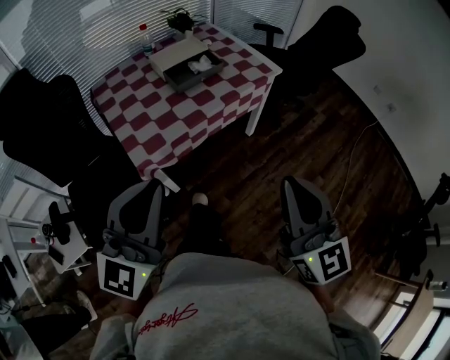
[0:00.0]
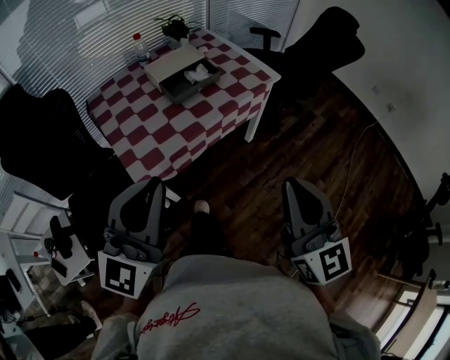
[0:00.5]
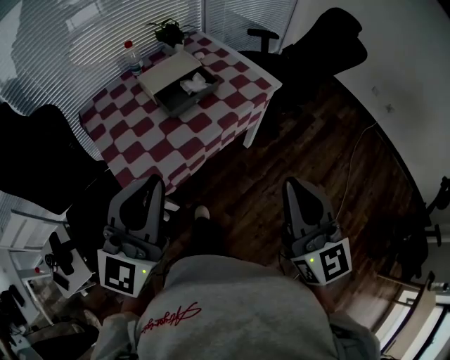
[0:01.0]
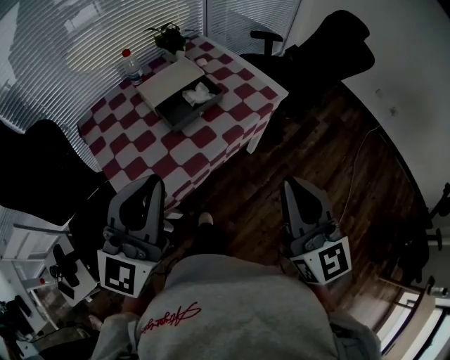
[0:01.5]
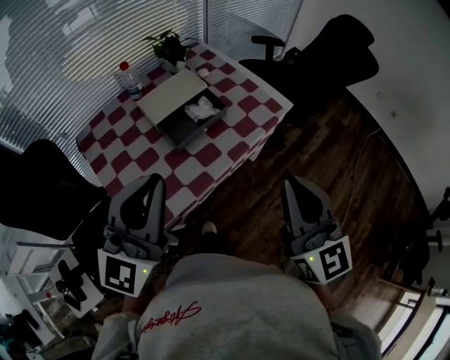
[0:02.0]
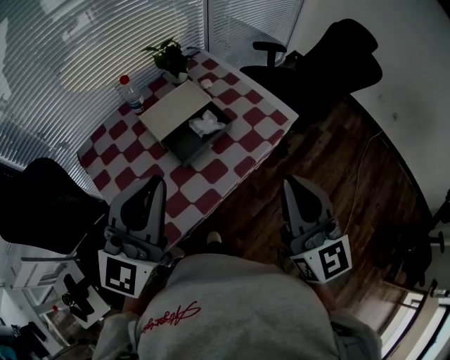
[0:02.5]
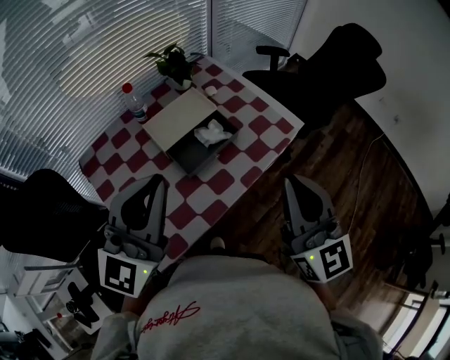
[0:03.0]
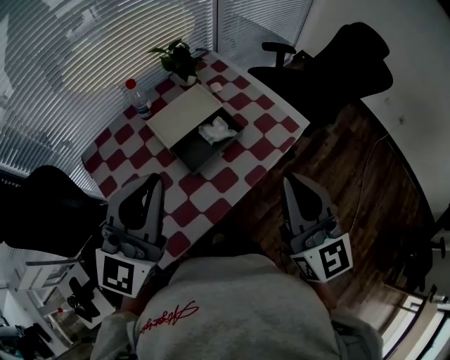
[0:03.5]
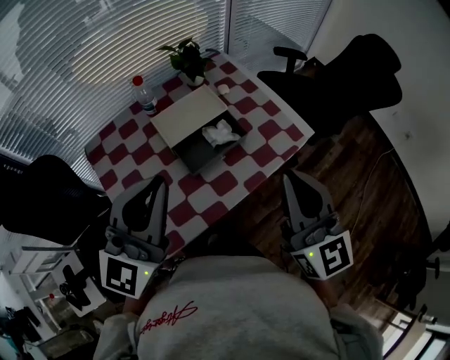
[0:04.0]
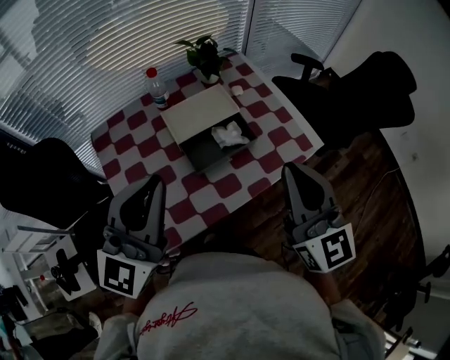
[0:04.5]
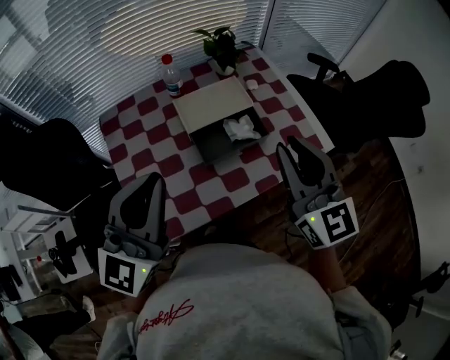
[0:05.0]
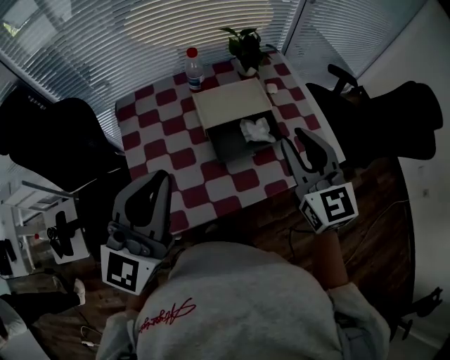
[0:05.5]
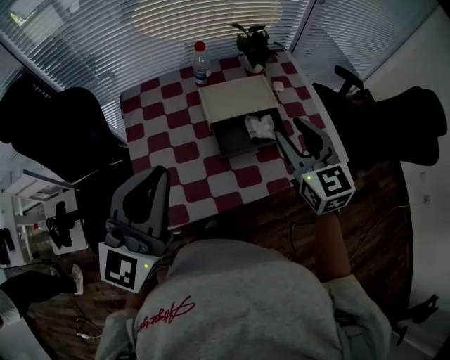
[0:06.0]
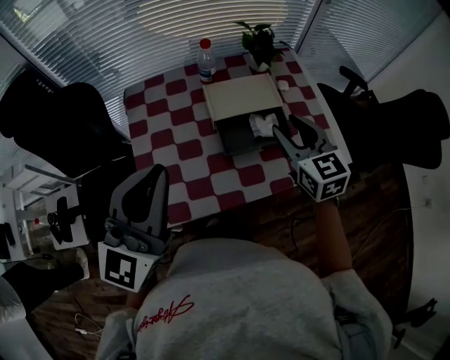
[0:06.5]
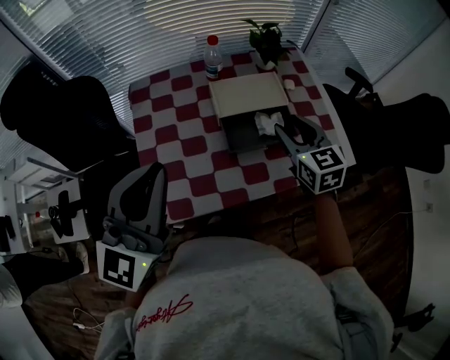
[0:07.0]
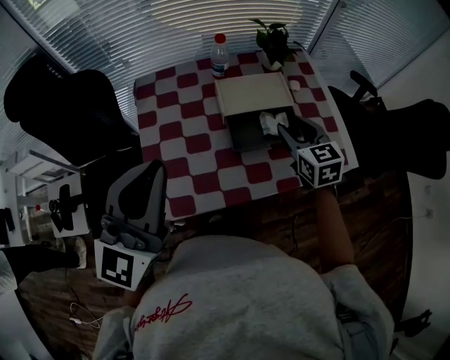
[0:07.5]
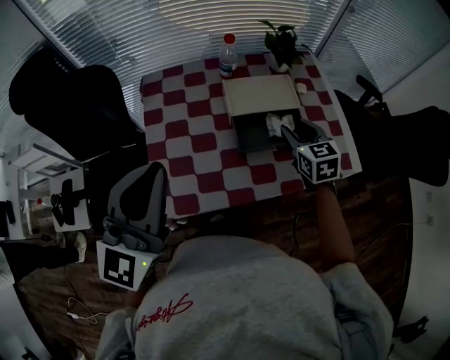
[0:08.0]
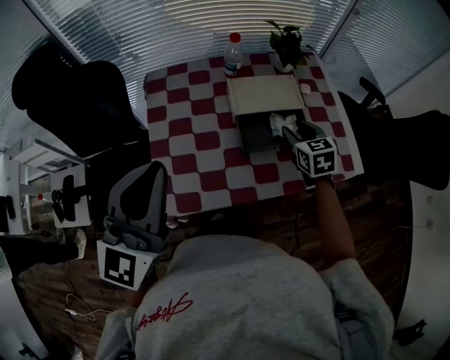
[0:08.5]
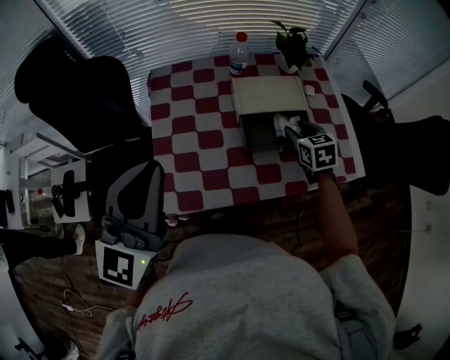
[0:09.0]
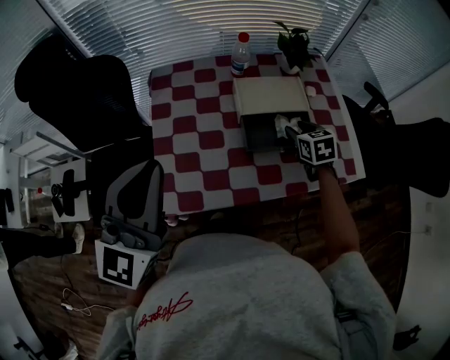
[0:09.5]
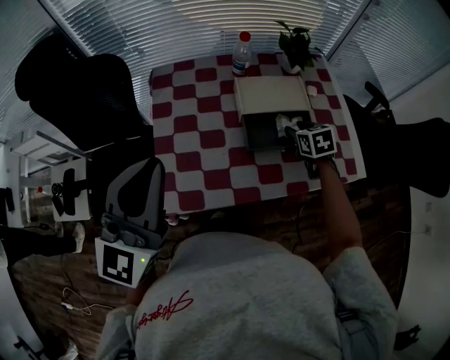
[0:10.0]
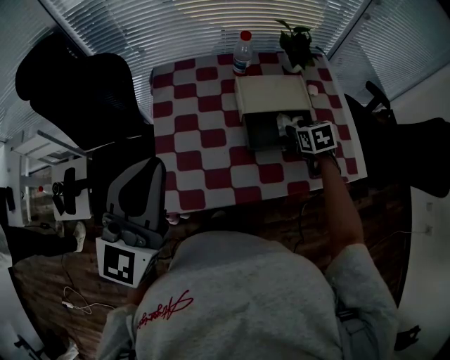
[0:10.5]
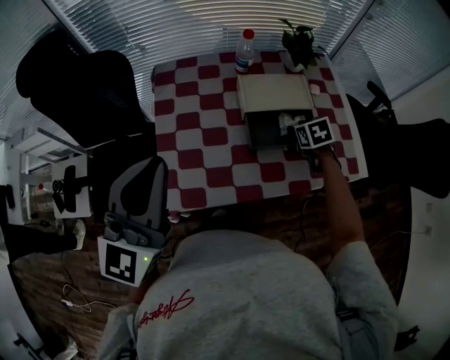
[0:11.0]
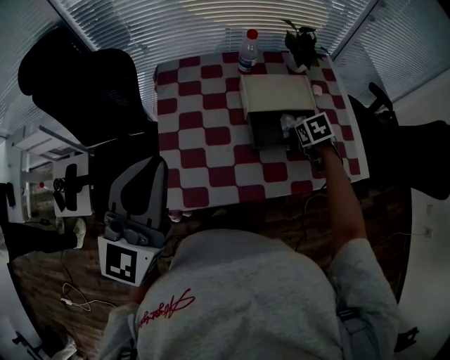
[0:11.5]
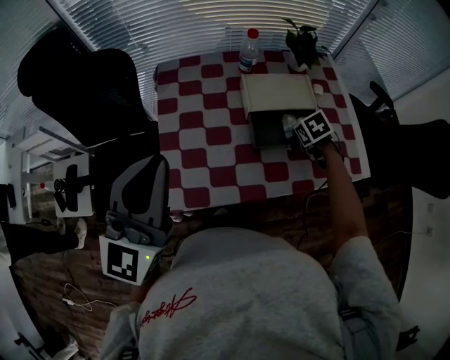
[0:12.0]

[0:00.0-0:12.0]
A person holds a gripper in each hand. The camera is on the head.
0:00.0 to 0:02.0: The grippers both shift forward by some 25 cm.
0:02.0 to 0:04.0: The grippers both shift forward by approximately 10 cm.
0:04.0 to 0:06.0: The left gripper is displaced to the left by roughly 5 cm, and changes its angle by some 20 degrees. Meanwhile the right gripper travels forward and downward by about 15 cm, turns by approximately 30 degrees, and opens.
0:06.0 to 0:08.0: The right gripper heads downward and forward, covering about 15 cm.
0:08.0 to 0:10.0: The right gripper moves downward, approximately 10 cm.
0:10.0 to 0:12.0: The right gripper swivels roughly 20 degrees, and closes its fingers.

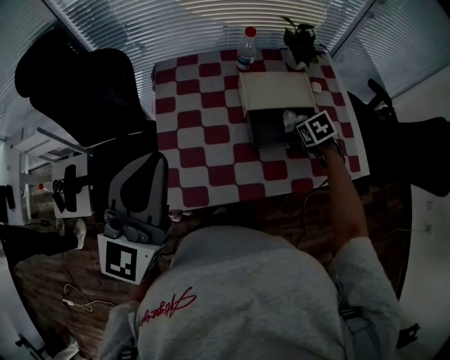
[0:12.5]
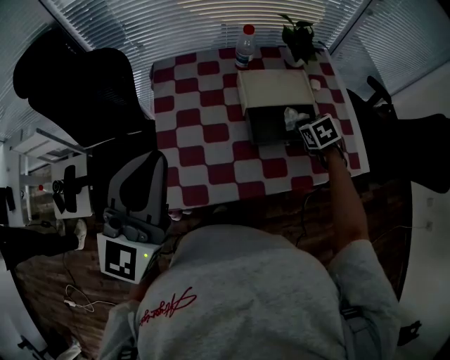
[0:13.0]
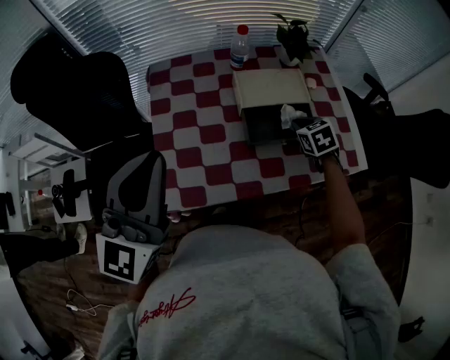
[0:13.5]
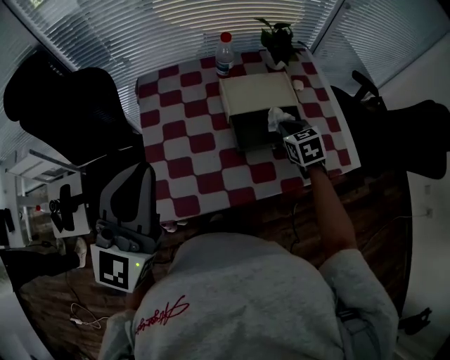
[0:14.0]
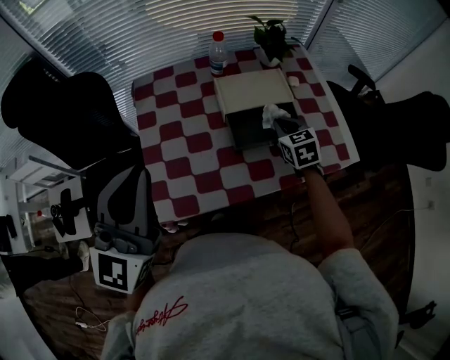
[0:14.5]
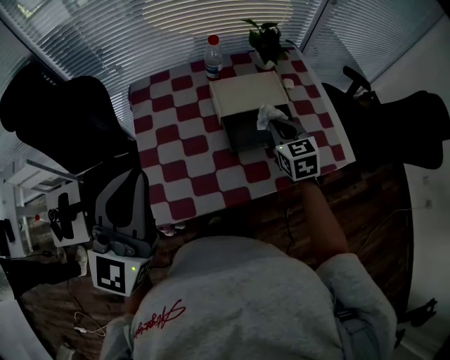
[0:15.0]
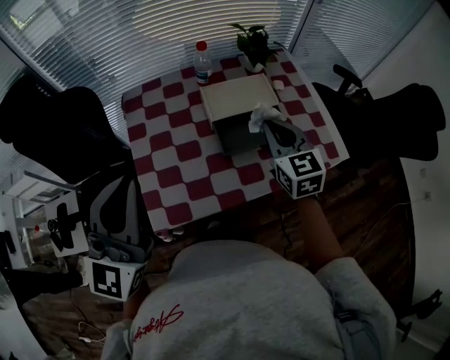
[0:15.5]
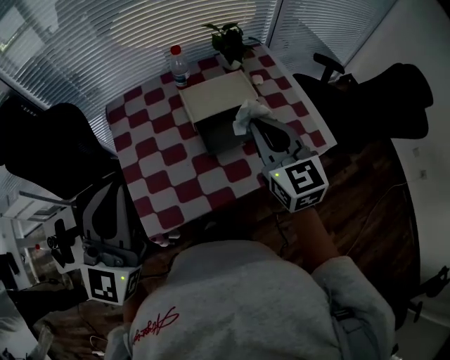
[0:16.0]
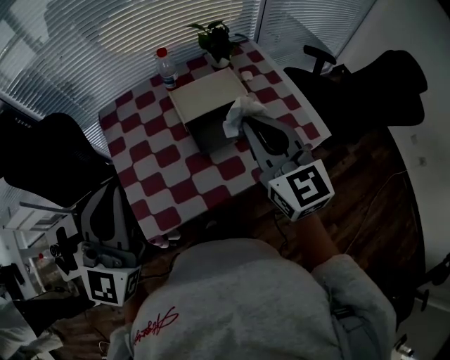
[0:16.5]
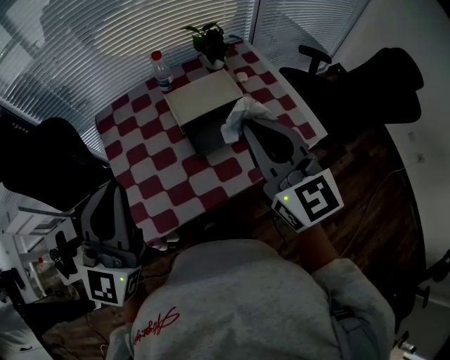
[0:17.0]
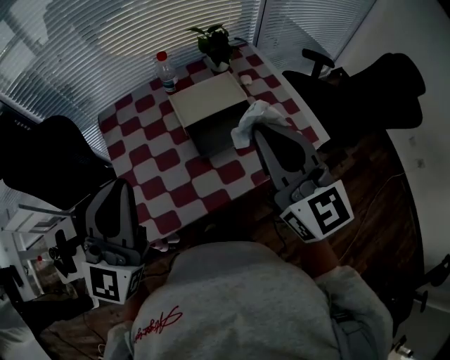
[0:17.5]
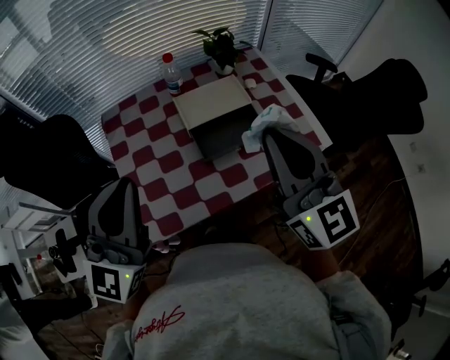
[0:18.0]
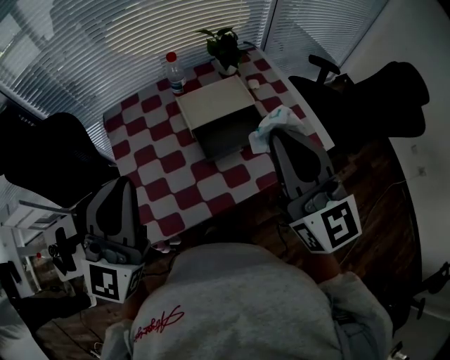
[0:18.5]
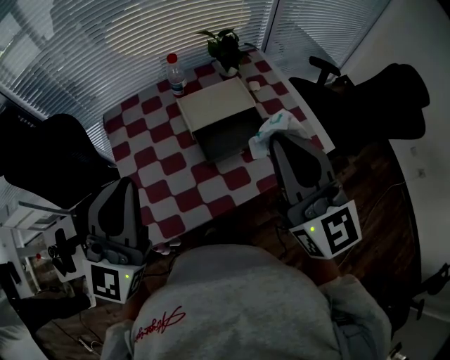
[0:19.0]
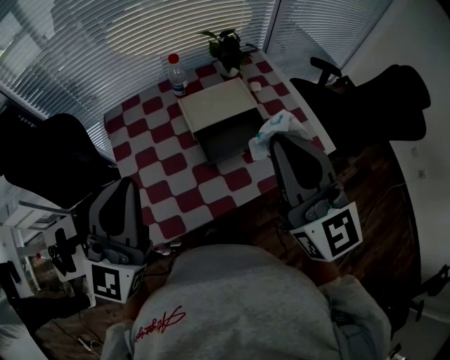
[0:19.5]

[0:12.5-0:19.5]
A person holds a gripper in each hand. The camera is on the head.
0:12.5 to 0:14.5: The right gripper travels upward by approximately 5 cm, and swivels some 30 degrees.
0:14.5 to 0:16.0: The right gripper shifts roughly 20 cm upward and backward, and rotates roughly 30 degrees.
0:16.0 to 0:17.5: The right gripper moves upward and backward, approximately 10 cm.
0:17.5 to 0:19.5: The grippers move only a little.

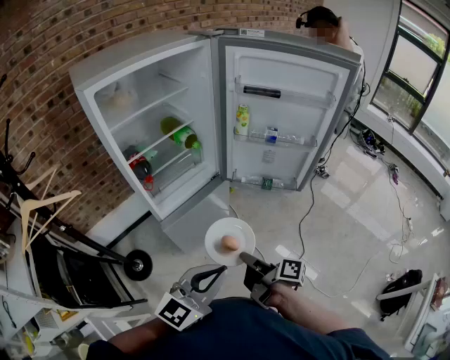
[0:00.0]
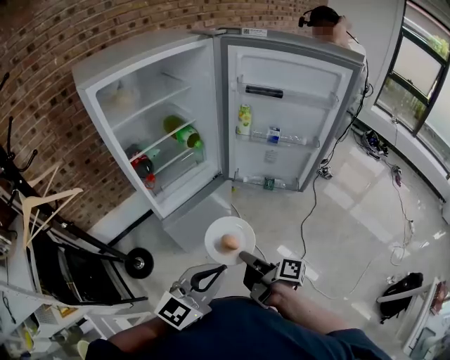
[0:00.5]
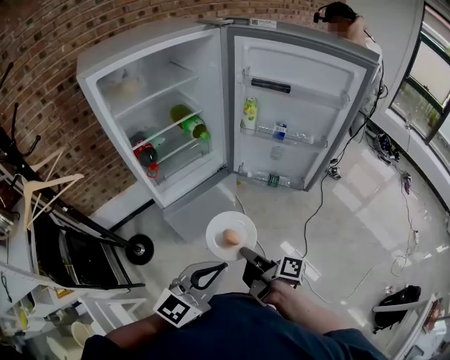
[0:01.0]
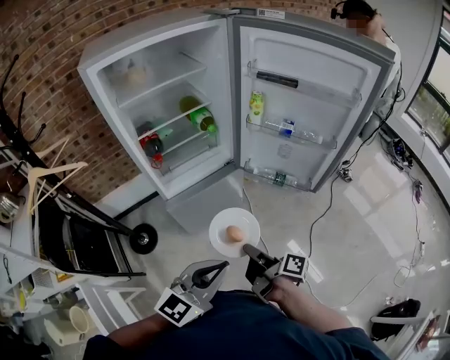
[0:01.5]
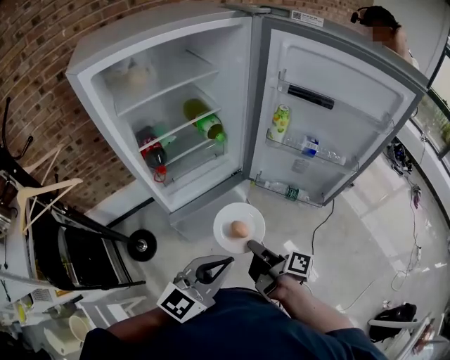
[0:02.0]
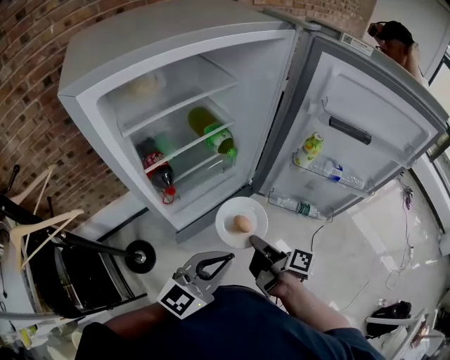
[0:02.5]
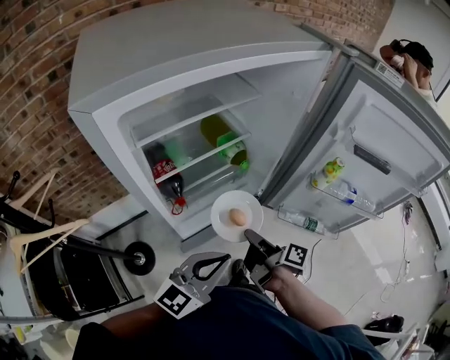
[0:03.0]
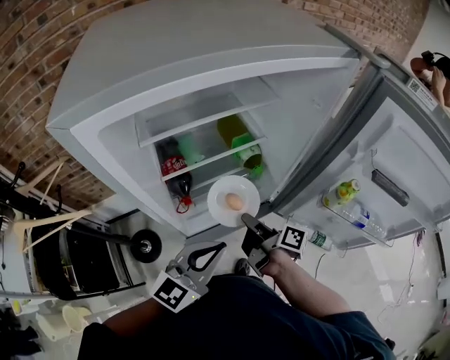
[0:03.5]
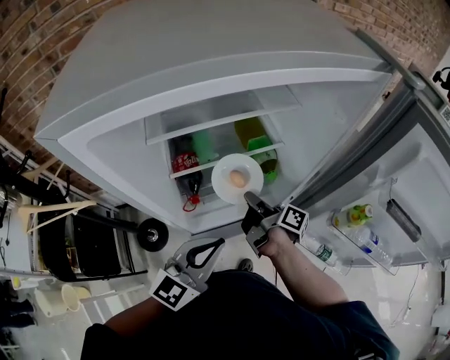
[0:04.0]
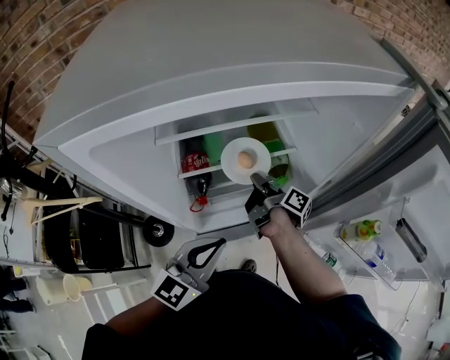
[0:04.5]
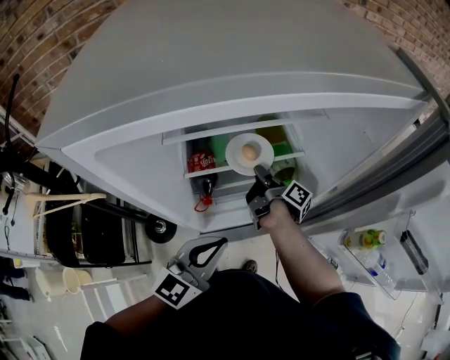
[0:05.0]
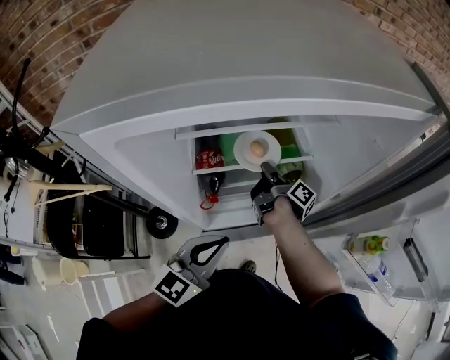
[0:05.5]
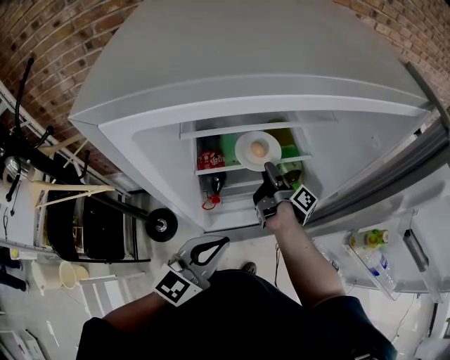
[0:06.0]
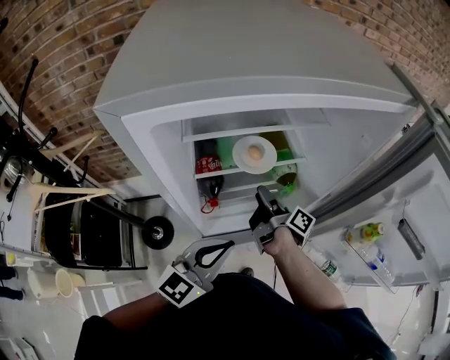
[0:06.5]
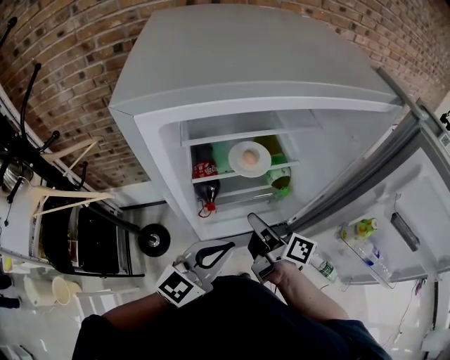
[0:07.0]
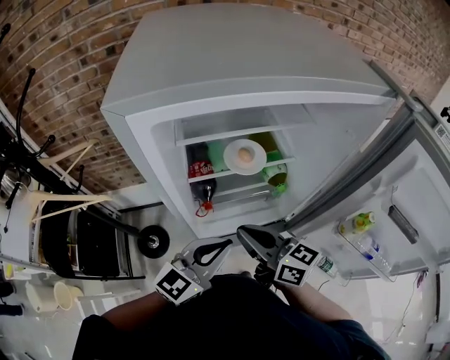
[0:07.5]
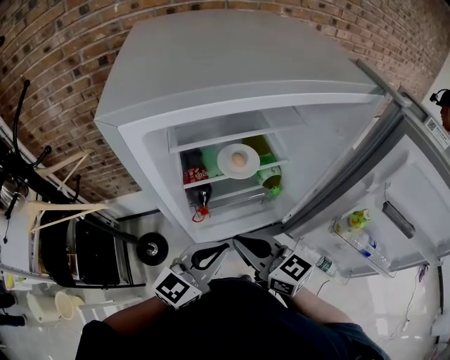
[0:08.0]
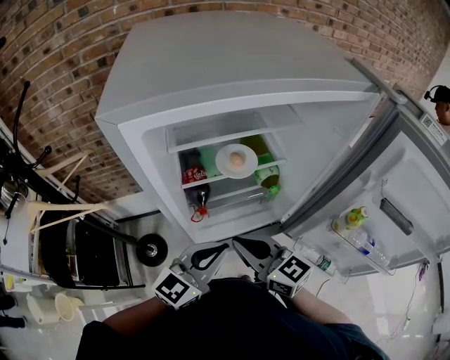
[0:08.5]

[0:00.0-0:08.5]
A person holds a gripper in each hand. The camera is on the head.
0:00.0 to 0:02.0: The left gripper ends up roughly 10 cm from where it was.
0:02.0 to 0:04.0: The left gripper changes place by some 30 cm, and rotates roughly 20 degrees.
